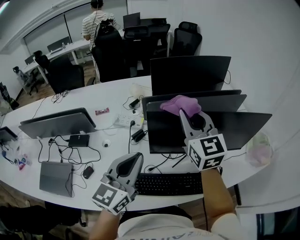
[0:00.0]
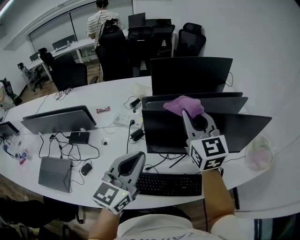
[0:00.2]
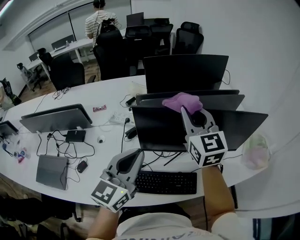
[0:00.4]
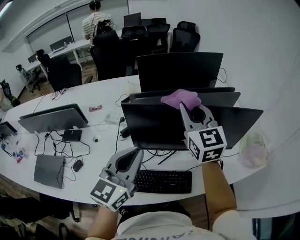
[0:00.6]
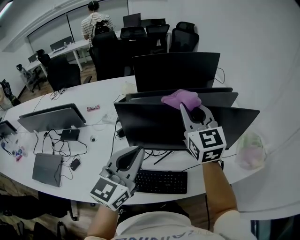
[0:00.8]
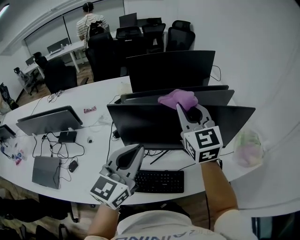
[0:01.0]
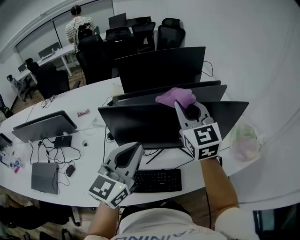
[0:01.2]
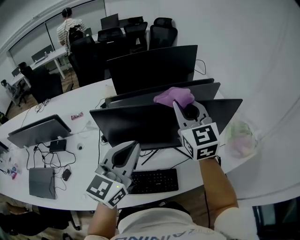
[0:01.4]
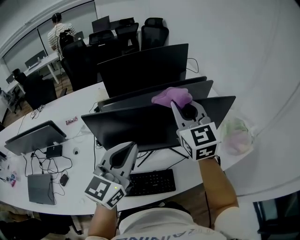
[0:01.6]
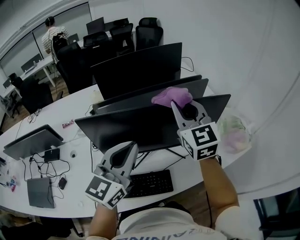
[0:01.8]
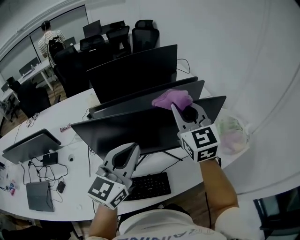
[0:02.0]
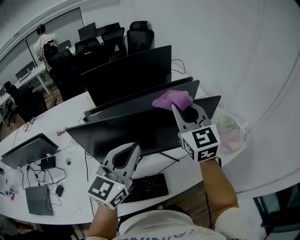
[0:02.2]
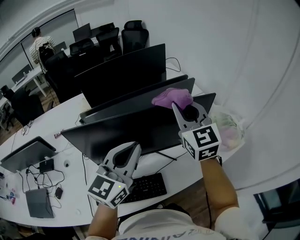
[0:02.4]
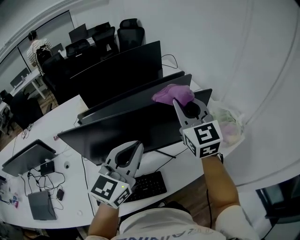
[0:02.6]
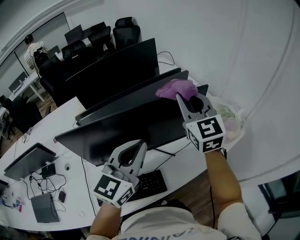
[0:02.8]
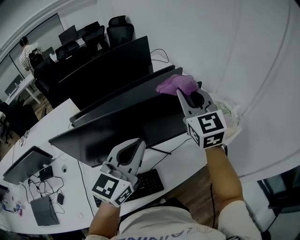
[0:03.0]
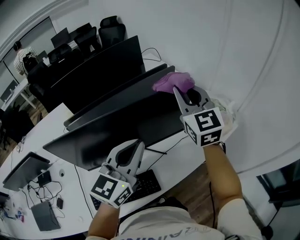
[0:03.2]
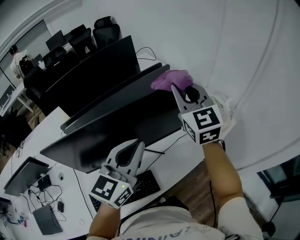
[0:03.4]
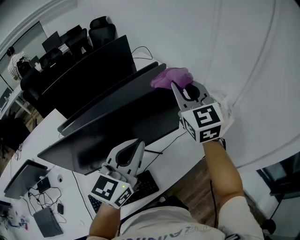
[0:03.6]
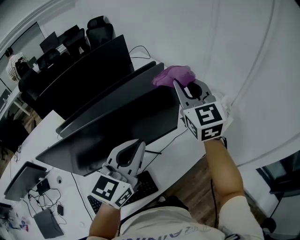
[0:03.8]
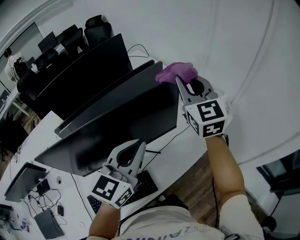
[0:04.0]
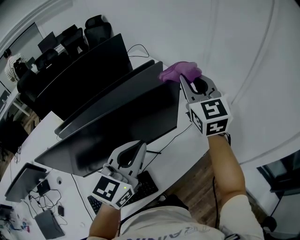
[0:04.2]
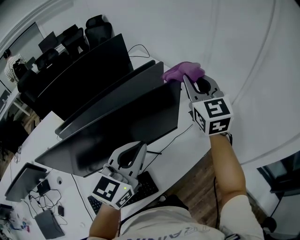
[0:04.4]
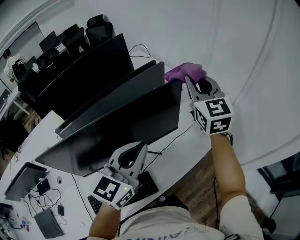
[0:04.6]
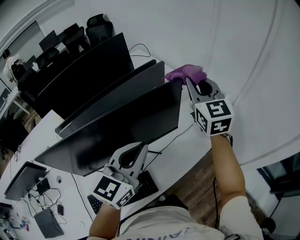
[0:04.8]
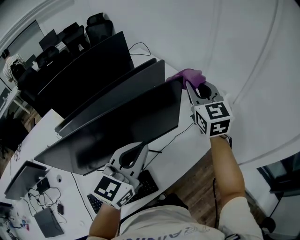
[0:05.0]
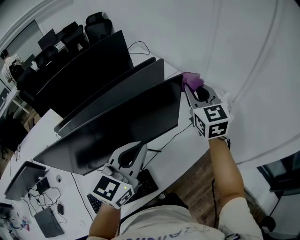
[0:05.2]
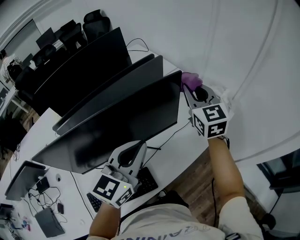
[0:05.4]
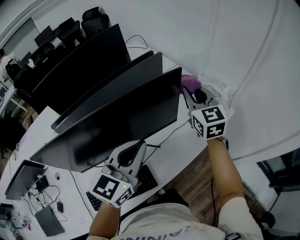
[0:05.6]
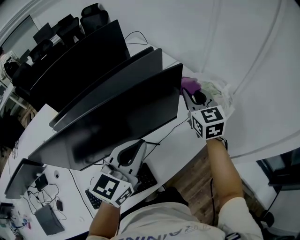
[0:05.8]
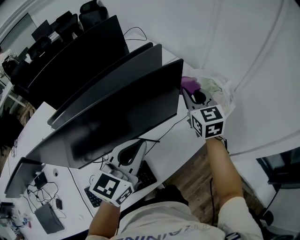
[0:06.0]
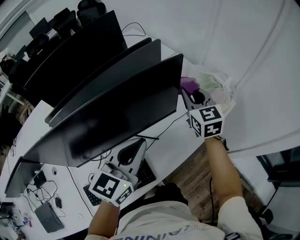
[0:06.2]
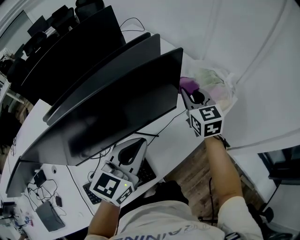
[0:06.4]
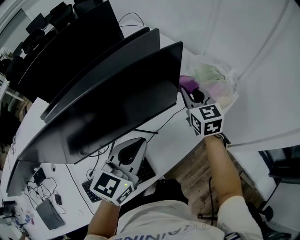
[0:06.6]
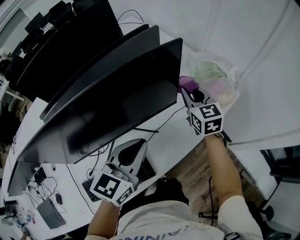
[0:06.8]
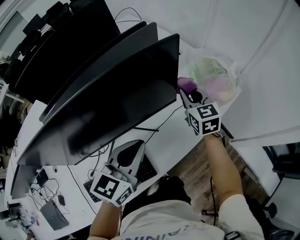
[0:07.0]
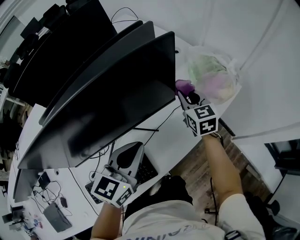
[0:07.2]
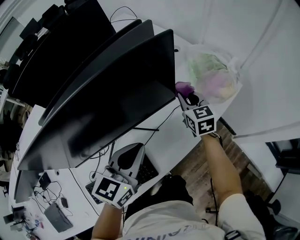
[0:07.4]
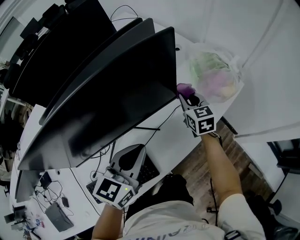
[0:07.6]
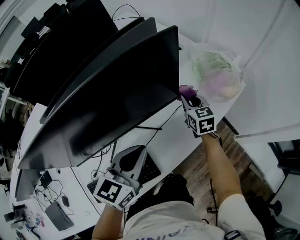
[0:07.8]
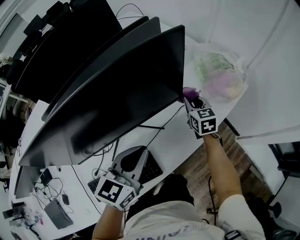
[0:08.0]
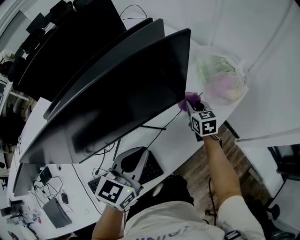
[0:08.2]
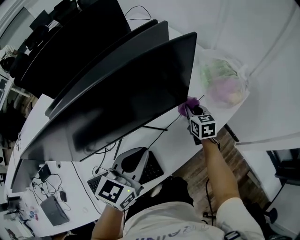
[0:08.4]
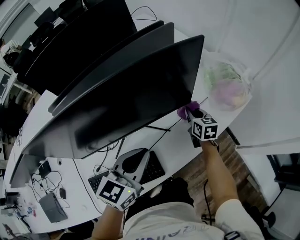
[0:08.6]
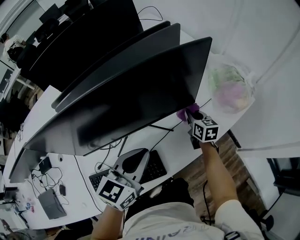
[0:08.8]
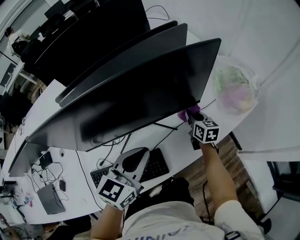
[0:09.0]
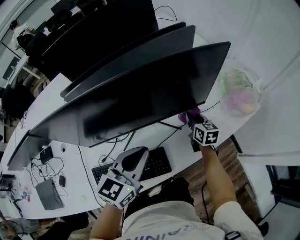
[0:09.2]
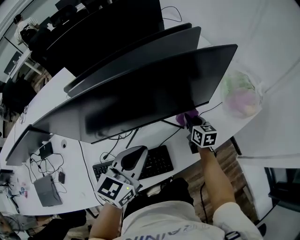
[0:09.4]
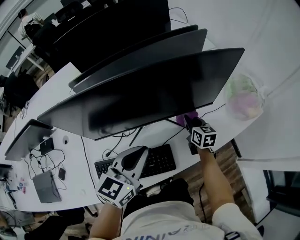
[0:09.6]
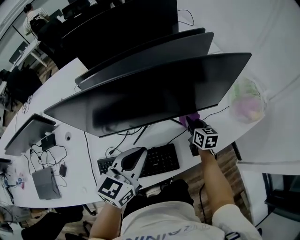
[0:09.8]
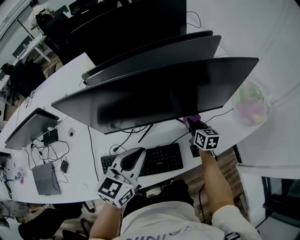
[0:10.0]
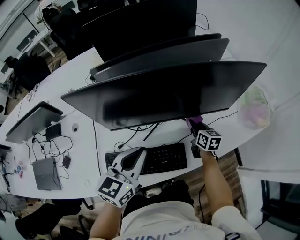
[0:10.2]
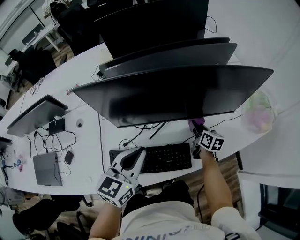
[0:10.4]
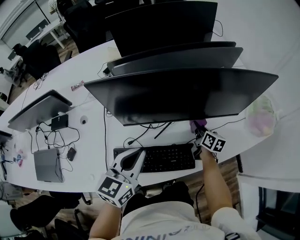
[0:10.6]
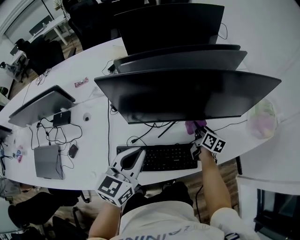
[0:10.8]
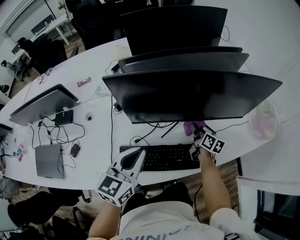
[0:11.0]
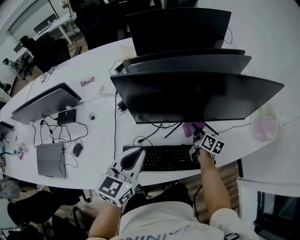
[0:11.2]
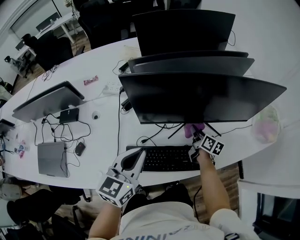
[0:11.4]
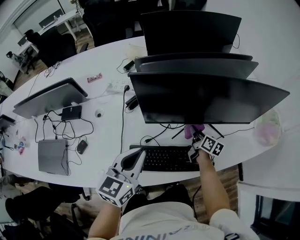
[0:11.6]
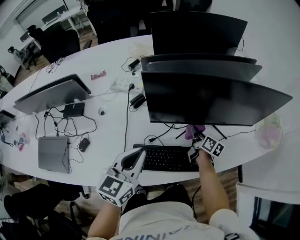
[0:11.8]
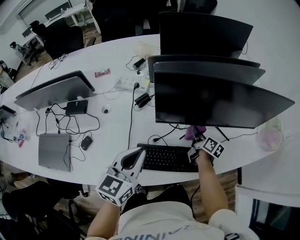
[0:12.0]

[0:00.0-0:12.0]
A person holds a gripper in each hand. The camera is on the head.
0.0 to 1.6 s: The two grippers go about 20 cm to the right.
1.6 to 3.0 s: The two grippers go roughly 15 cm to the right.
3.0 to 4.4 s: The left gripper is displaced to the right by about 5 cm. Meanwhile the right gripper moves to the right and forward, about 10 cm.
4.4 to 6.0 s: The left gripper is displaced downward by some 5 cm, while the right gripper is displaced downward by some 15 cm.
6.0 to 7.6 s: The right gripper travels downward by approximately 20 cm; the left gripper is displaced downward by about 10 cm.
7.6 to 9.0 s: The left gripper goes approximately 5 cm to the left. The right gripper travels downward and to the left by about 10 cm.
9.0 to 10.4 s: The right gripper moves to the left, about 15 cm, while the left gripper moves to the left and backward, some 20 cm.
10.4 to 12.0 s: Both grippers move to the left, some 15 cm.

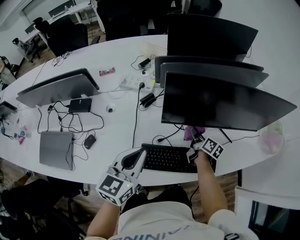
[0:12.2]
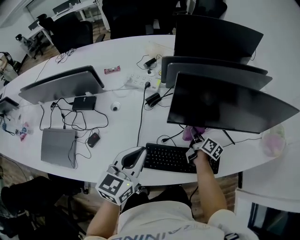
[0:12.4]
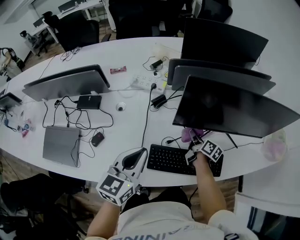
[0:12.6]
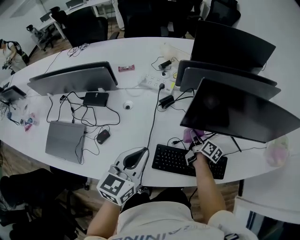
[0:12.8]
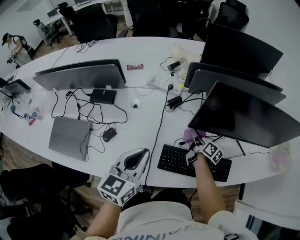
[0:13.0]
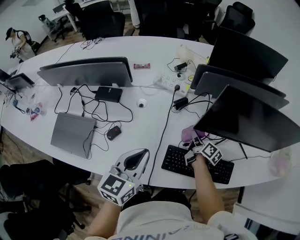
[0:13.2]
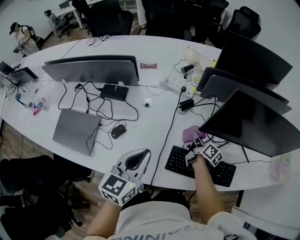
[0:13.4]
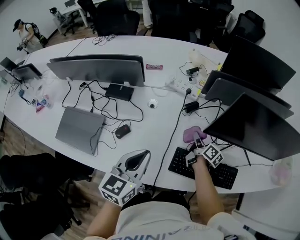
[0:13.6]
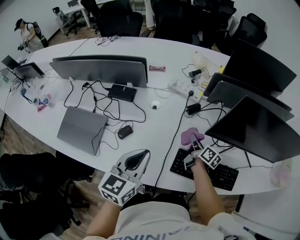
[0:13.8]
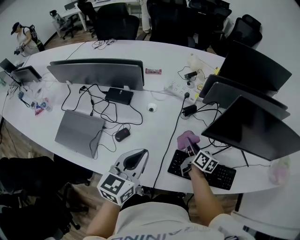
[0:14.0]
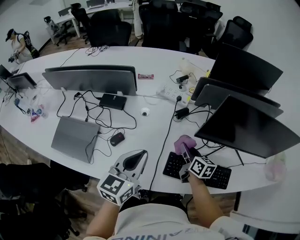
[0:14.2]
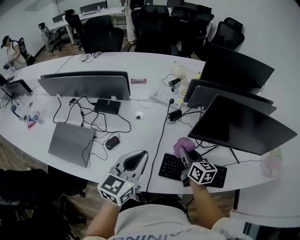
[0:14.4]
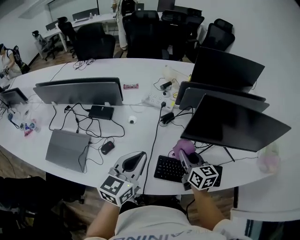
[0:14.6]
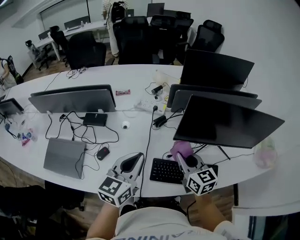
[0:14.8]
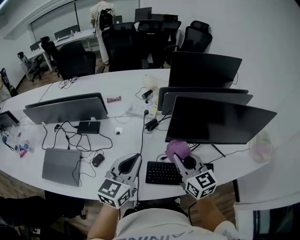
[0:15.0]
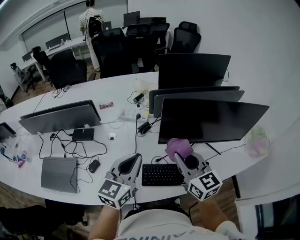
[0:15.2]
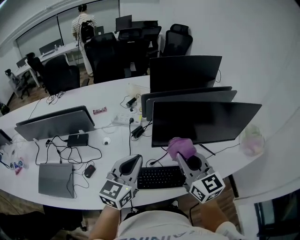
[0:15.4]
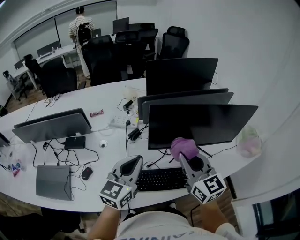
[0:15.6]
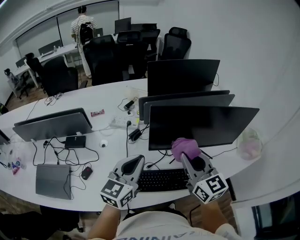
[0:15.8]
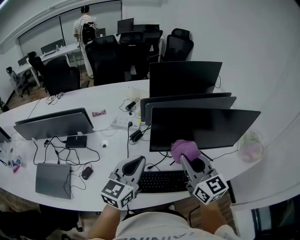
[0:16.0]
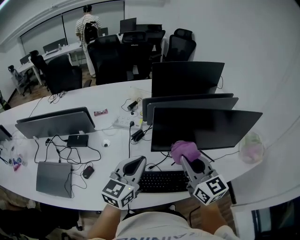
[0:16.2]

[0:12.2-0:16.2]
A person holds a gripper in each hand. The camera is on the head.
12.2 to 13.6 s: Both grippers travel together to the left, about 15 cm.
13.6 to 14.8 s: The left gripper heads to the right and upward, covering some 10 cm, while the right gripper travels upward and backward by roughly 20 cm, and rotates around the line of its fingers by about 50 degrees, counterclockwise from behind.
14.8 to 16.2 s: The right gripper moves upward and to the right, about 15 cm, while the left gripper moves to the right, roughly 10 cm.

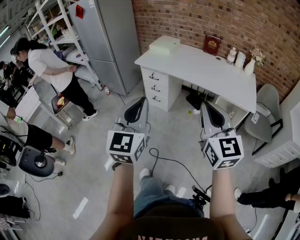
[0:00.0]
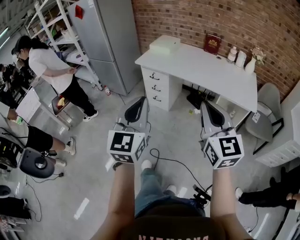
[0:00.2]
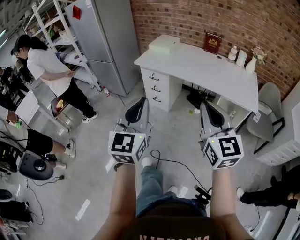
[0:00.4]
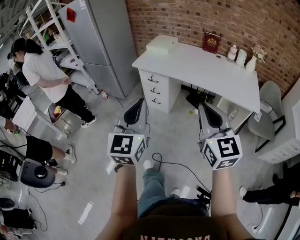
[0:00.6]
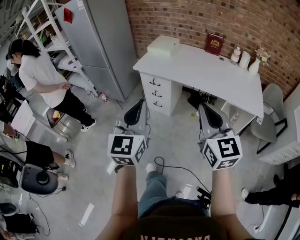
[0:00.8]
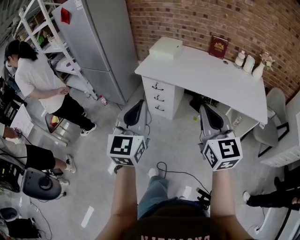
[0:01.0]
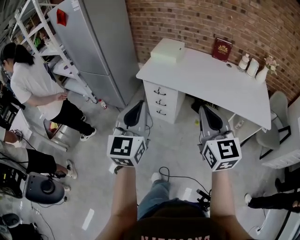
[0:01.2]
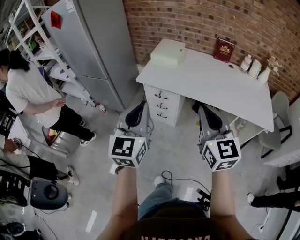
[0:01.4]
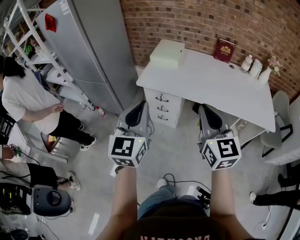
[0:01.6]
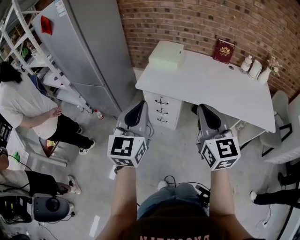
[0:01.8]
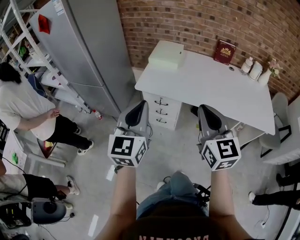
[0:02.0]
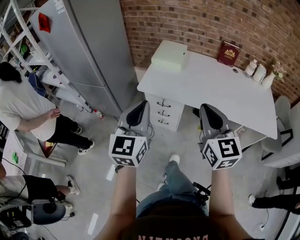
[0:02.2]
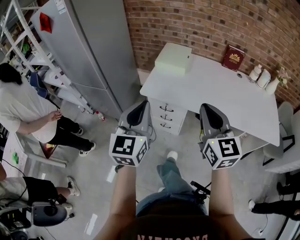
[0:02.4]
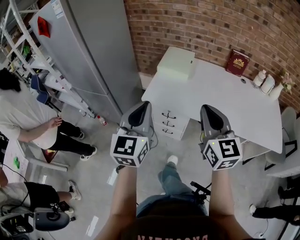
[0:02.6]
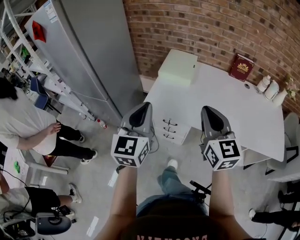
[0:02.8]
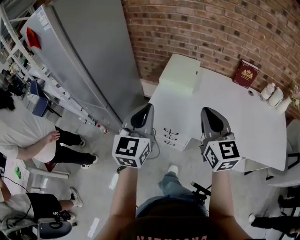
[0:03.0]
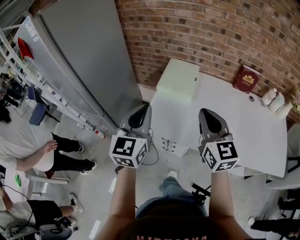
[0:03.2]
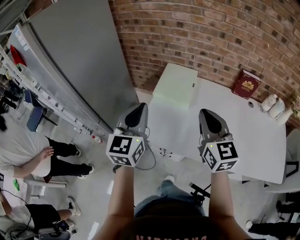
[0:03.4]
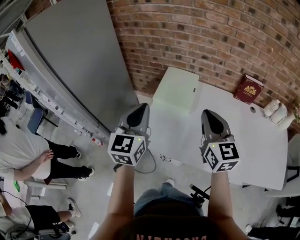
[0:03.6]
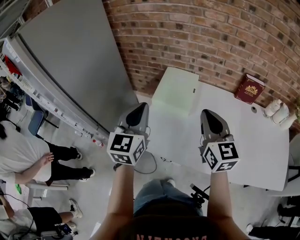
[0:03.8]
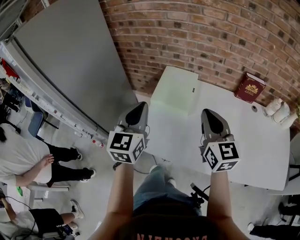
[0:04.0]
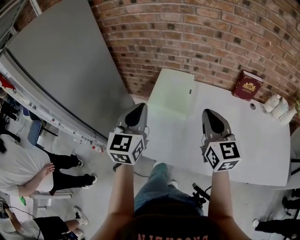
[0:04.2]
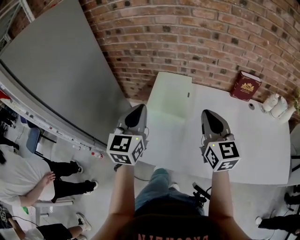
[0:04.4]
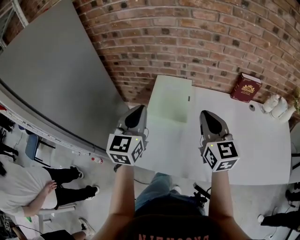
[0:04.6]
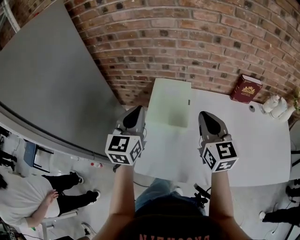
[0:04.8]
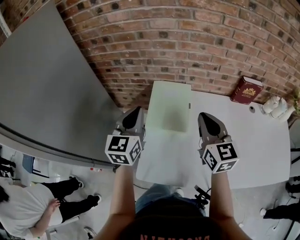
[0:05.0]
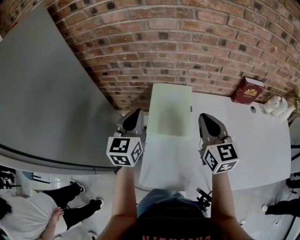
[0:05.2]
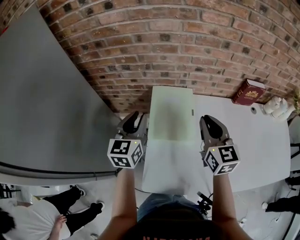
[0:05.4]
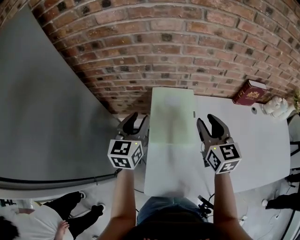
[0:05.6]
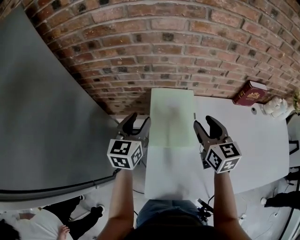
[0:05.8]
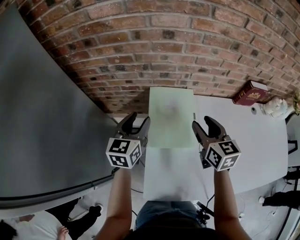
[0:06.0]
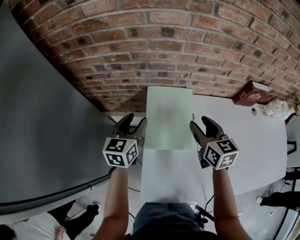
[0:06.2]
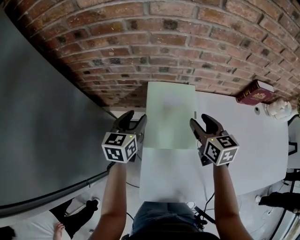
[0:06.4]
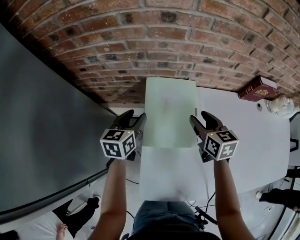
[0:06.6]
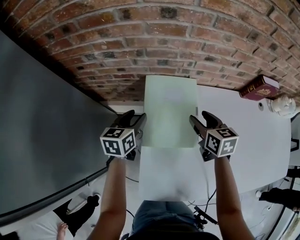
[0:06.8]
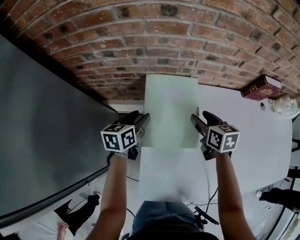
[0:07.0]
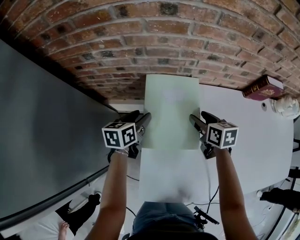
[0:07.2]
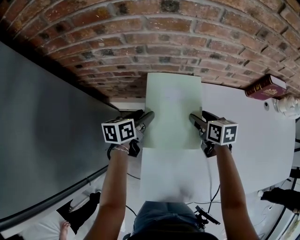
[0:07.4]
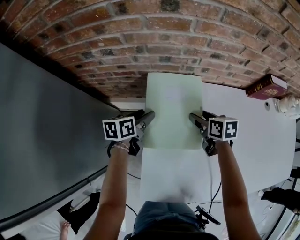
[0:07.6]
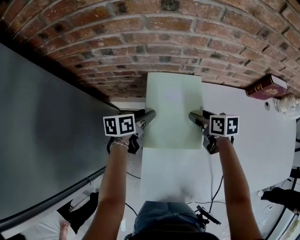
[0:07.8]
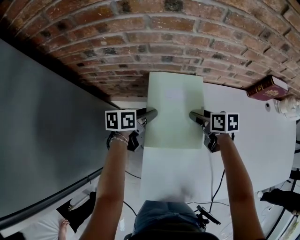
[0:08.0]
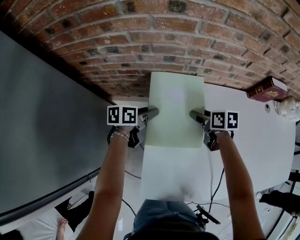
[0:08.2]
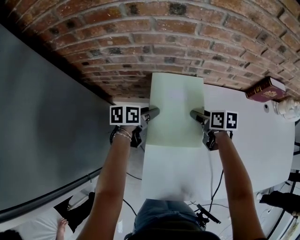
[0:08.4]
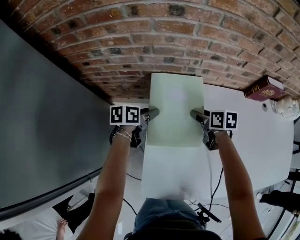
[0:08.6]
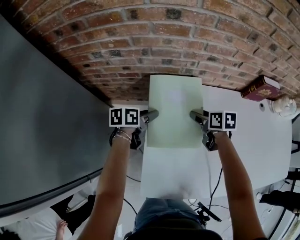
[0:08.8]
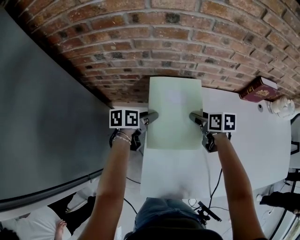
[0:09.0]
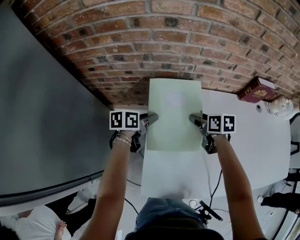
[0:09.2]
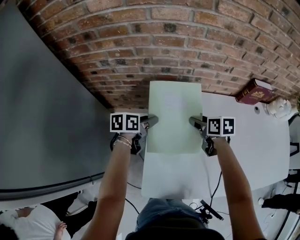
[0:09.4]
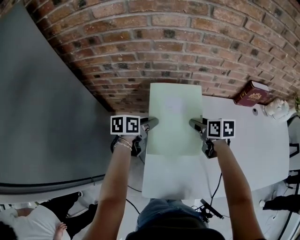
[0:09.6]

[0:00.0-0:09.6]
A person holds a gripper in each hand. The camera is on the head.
0.0 to 1.6 s: The two grippers go some 40 cm forward and to the left.
1.6 to 3.2 s: Both grippers travel together forward, about 35 cm.
3.2 to 4.8 s: Both grippers move forward, about 25 cm.
4.8 to 6.4 s: Both grippers travel together forward and downward, approximately 25 cm. The right gripper changes its angle by roughly 30 degrees, and opens. Meanwhile the left gripper changes its angle by roughly 30 degrees, and opens up.
6.4 to 8.0 s: The two grippers go about 15 cm downward. The right gripper rotates approximately 30 degrees. The left gripper rotates approximately 40 degrees.
8.0 to 9.6 s: Both grippers travel together upward, some 10 cm.
